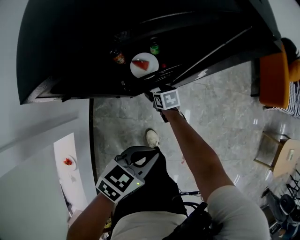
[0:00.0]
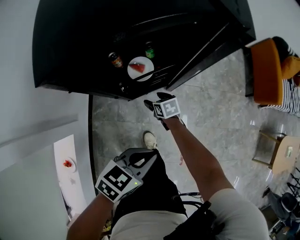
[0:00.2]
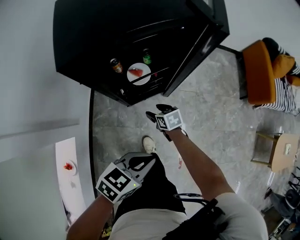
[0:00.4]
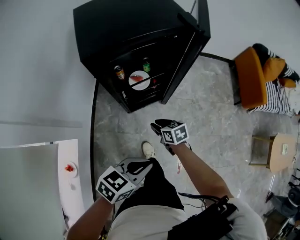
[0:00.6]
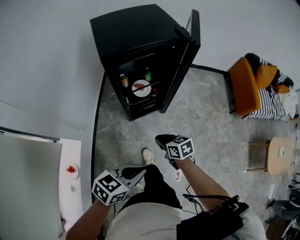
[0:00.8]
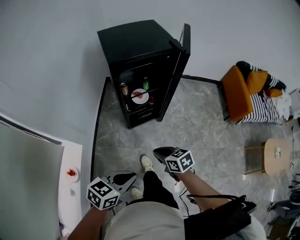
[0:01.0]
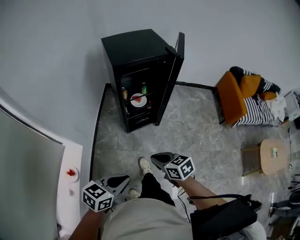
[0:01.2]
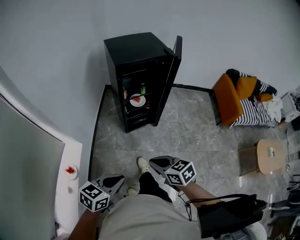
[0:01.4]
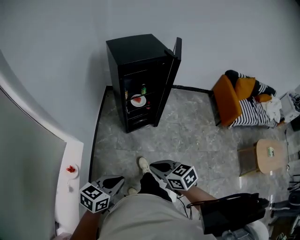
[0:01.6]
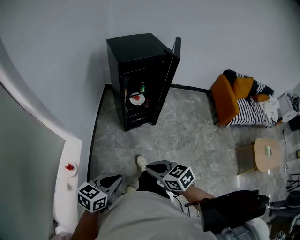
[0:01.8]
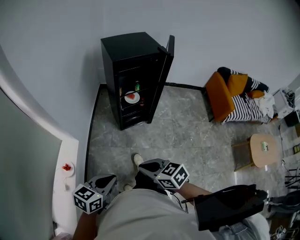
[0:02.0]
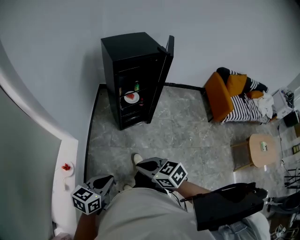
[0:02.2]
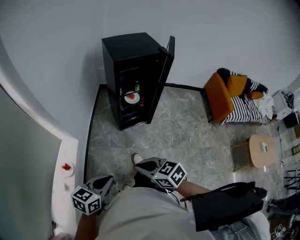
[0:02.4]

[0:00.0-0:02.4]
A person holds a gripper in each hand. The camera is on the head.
0:00.0 to 0:01.2: The left gripper shifts by some 40 cm.
0:01.2 to 0:02.4: The left gripper changes place by about 10 cm.

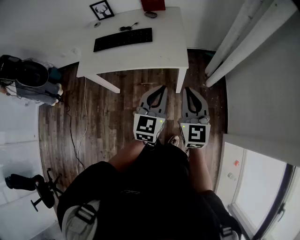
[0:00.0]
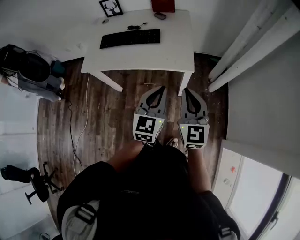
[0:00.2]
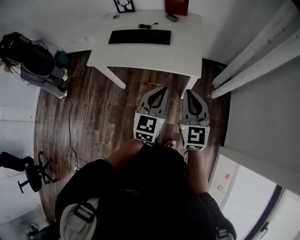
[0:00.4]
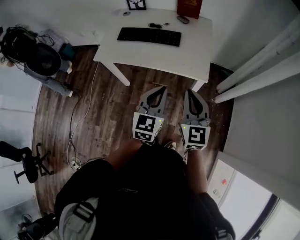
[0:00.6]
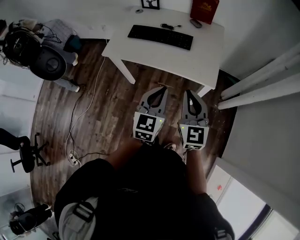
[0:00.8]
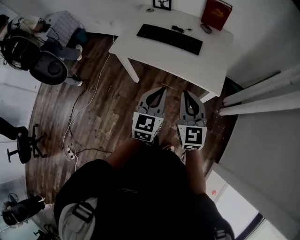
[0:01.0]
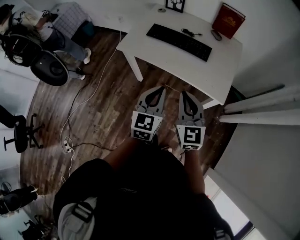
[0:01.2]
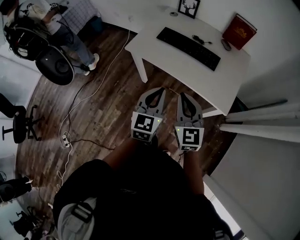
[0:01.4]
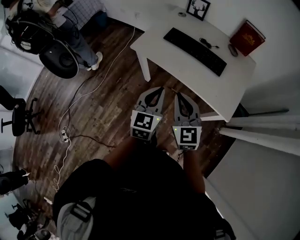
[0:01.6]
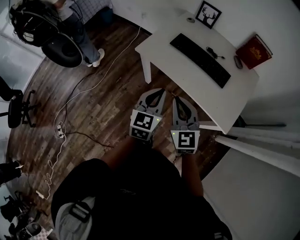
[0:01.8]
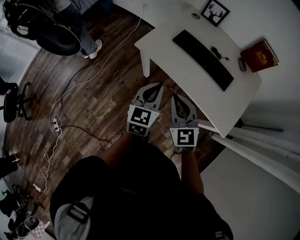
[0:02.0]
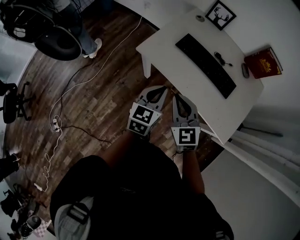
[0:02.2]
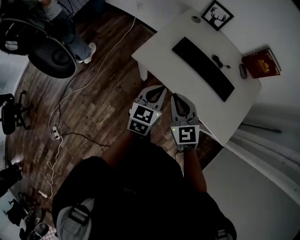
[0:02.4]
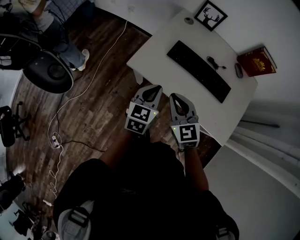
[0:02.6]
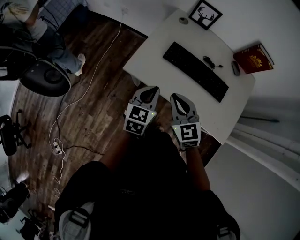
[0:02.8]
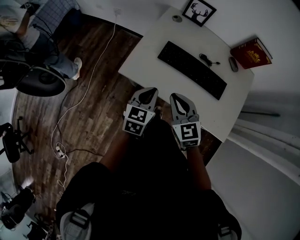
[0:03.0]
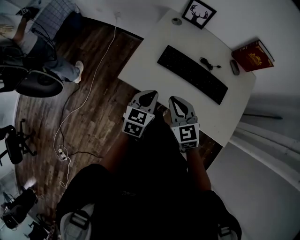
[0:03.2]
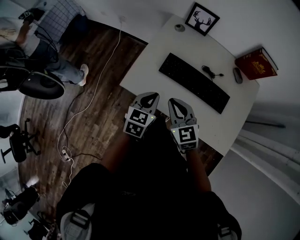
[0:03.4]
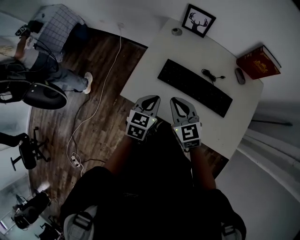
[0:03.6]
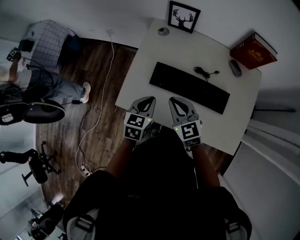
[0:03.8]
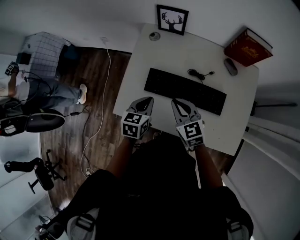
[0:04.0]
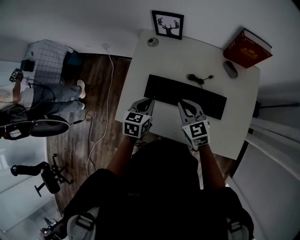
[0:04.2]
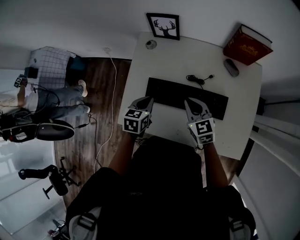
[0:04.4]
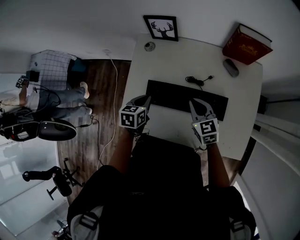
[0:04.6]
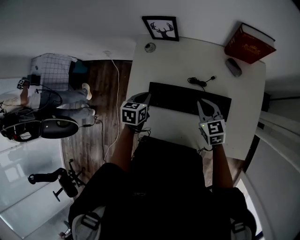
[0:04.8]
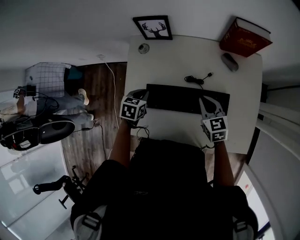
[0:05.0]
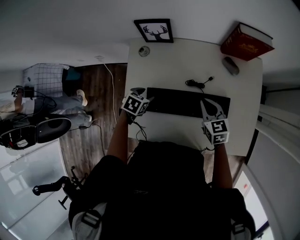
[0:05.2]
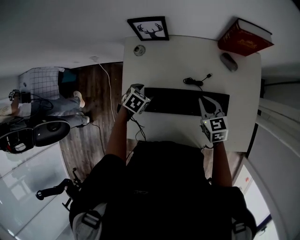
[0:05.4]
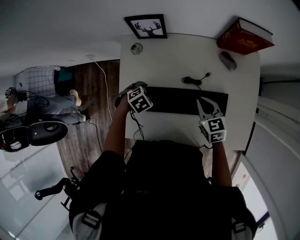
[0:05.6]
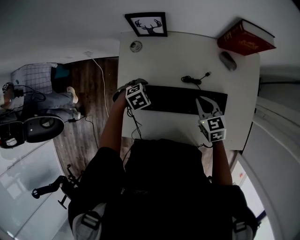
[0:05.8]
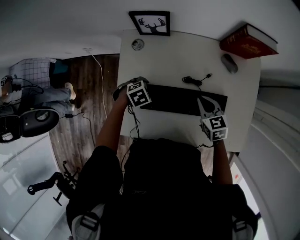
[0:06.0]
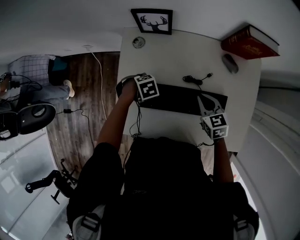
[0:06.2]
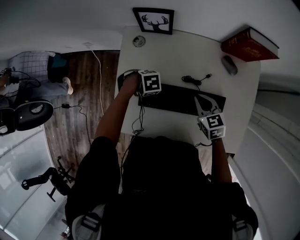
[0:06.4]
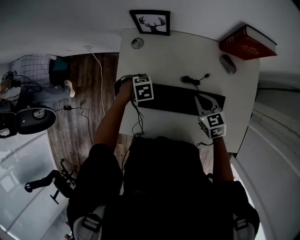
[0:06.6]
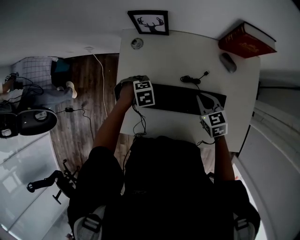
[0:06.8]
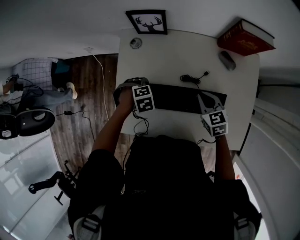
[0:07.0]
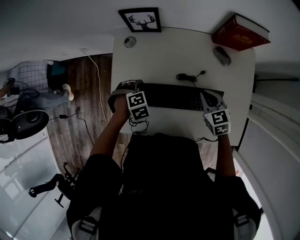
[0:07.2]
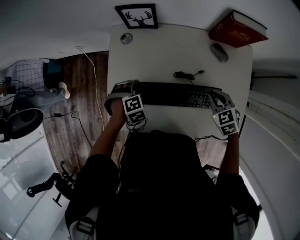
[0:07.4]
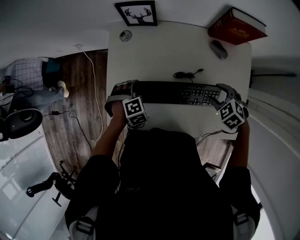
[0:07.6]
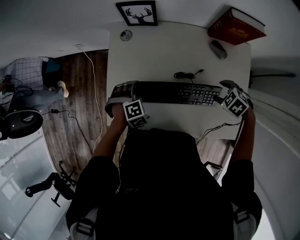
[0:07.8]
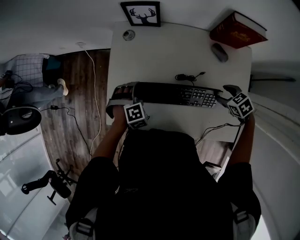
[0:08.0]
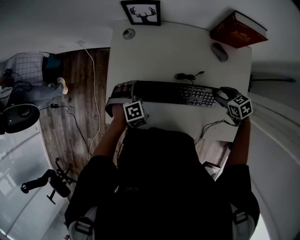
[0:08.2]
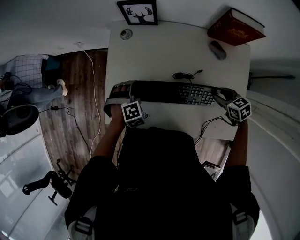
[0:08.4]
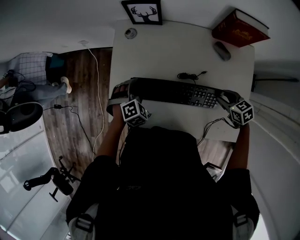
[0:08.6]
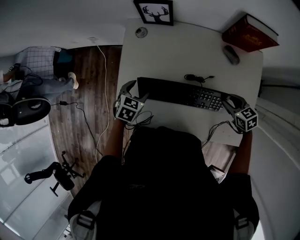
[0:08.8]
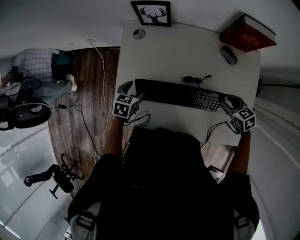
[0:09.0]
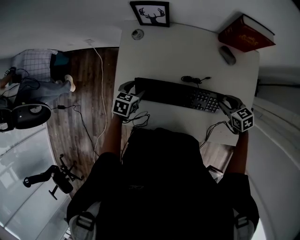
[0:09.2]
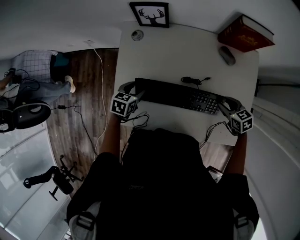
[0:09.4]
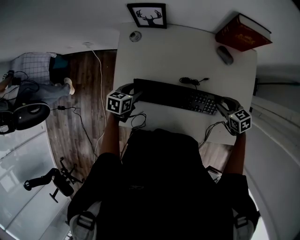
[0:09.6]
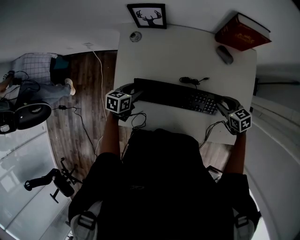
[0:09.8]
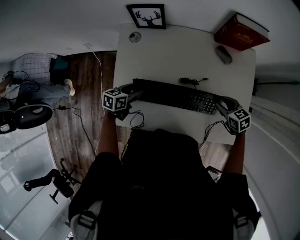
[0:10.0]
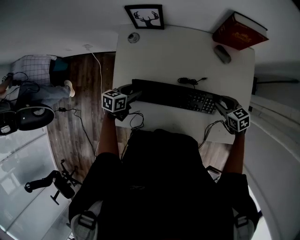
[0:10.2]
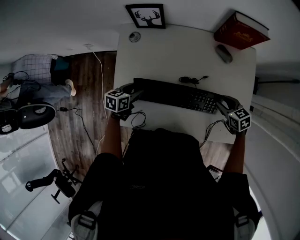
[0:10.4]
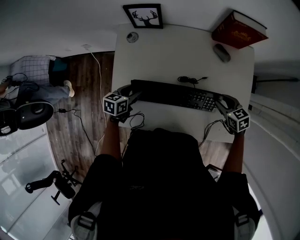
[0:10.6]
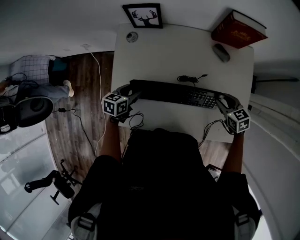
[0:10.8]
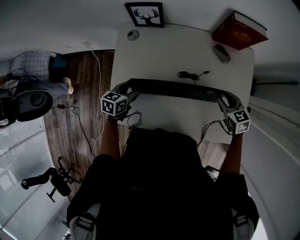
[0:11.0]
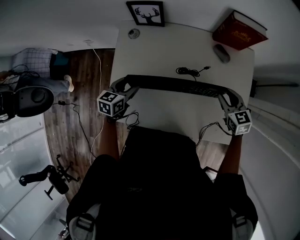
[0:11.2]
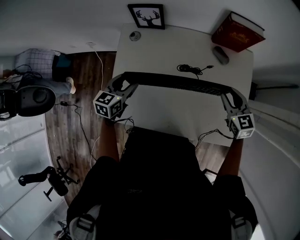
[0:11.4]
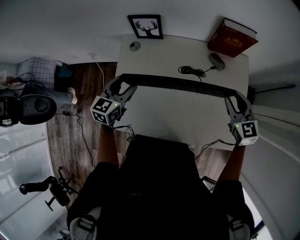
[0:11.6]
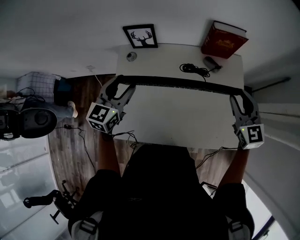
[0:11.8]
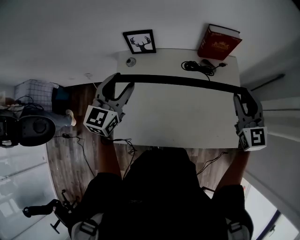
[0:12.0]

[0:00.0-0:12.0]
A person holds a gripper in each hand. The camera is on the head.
0:00.0 to 0:01.6: The left gripper changes place by about 30 cm, and changes its angle by roughly 30 degrees. The right gripper moves about 30 cm, and rotates about 40 degrees.
0:01.6 to 0:03.0: The grippers both shift forward by approximately 25 cm.
0:03.0 to 0:04.4: The right gripper shifts about 25 cm forward and to the right. The left gripper is displaced forward by some 20 cm.
0:04.4 to 0:06.0: The right gripper shifts by some 10 cm. Meanwhile the left gripper goes about 10 cm downward, changes its angle by about 70 degrees, and opens up.
0:06.0 to 0:07.6: The left gripper ends up some 5 cm from where it was, and changes its angle by approximately 30 degrees, while the right gripper ends up roughly 10 cm from where it was, changes its angle by approximately 40 degrees, and opens its fingers.
0:07.6 to 0:09.0: The right gripper ends up some 5 cm from where it was, and turns by approximately 40 degrees, while the left gripper ends up roughly 5 cm from where it was, and rolls counterclockwise, seen from behind, by approximately 60 degrees.
0:09.0 to 0:10.4: The left gripper changes its angle by about 20 degrees.
0:10.4 to 0:12.0: Both grippers move upward, approximately 30 cm. The left gripper tilts its fingers about 30 degrees upward. The right gripper tips its fingers upward by about 40 degrees.

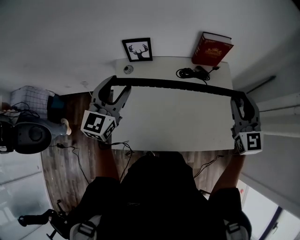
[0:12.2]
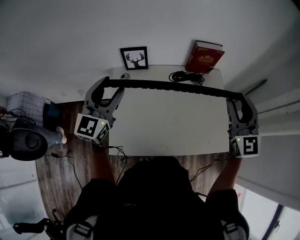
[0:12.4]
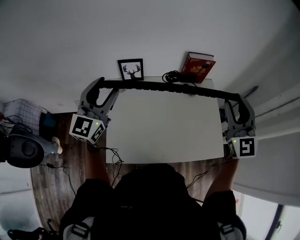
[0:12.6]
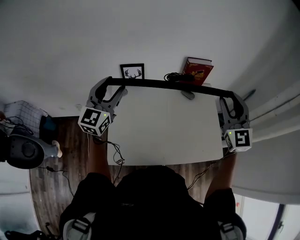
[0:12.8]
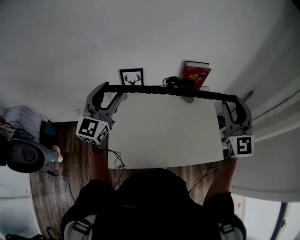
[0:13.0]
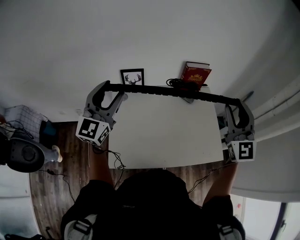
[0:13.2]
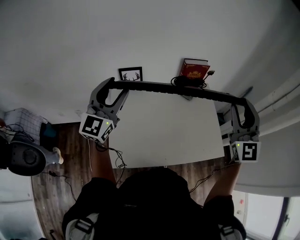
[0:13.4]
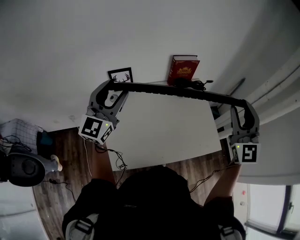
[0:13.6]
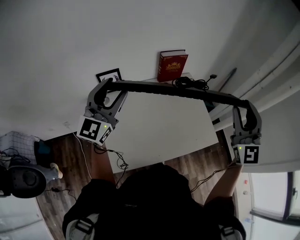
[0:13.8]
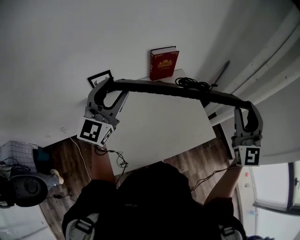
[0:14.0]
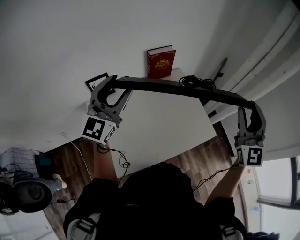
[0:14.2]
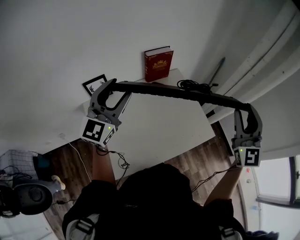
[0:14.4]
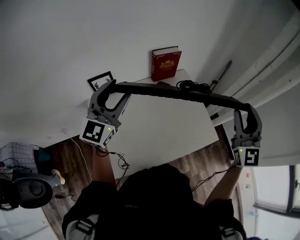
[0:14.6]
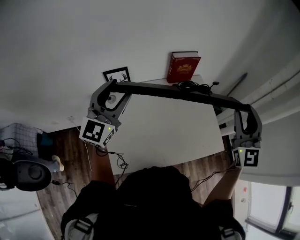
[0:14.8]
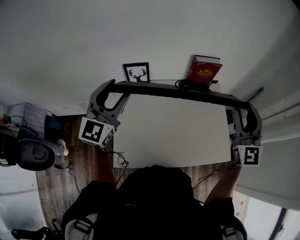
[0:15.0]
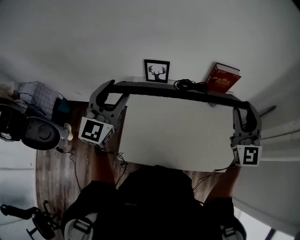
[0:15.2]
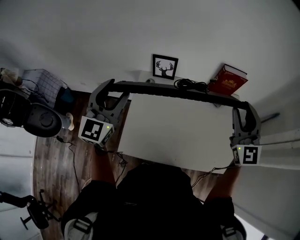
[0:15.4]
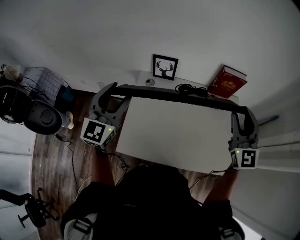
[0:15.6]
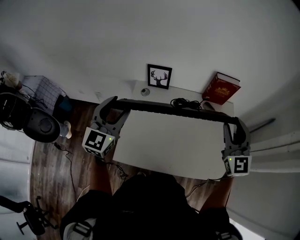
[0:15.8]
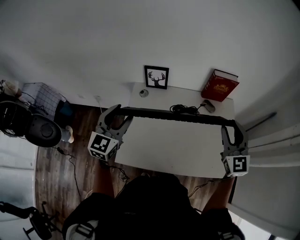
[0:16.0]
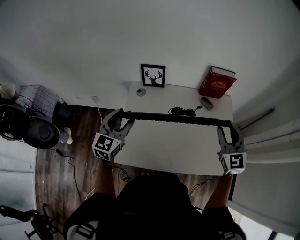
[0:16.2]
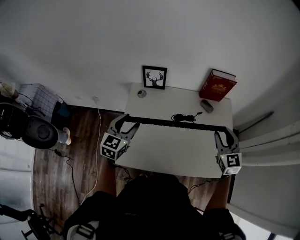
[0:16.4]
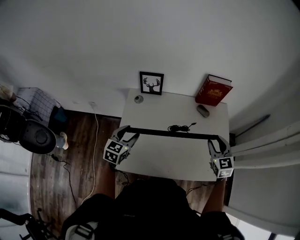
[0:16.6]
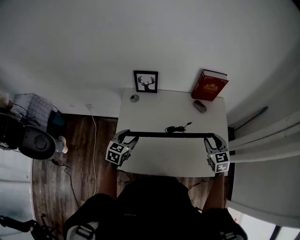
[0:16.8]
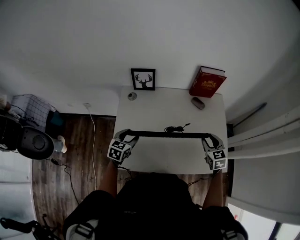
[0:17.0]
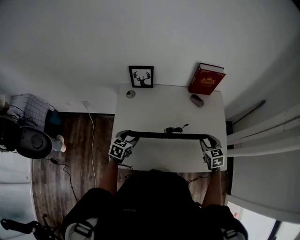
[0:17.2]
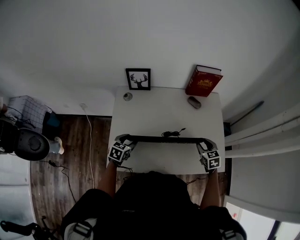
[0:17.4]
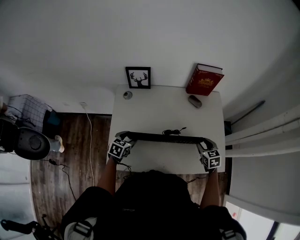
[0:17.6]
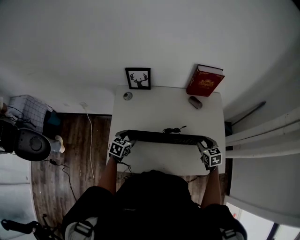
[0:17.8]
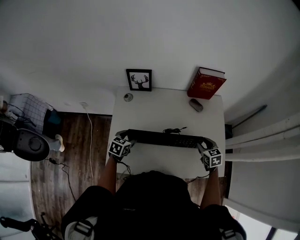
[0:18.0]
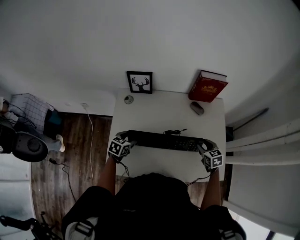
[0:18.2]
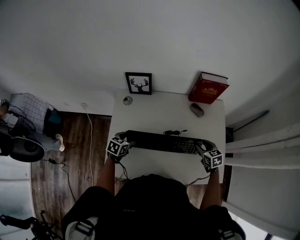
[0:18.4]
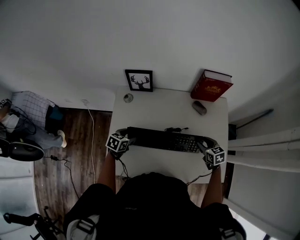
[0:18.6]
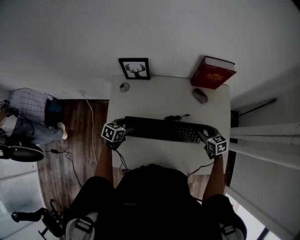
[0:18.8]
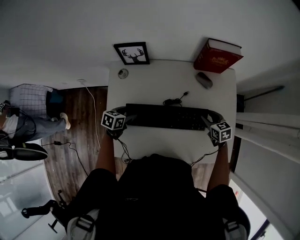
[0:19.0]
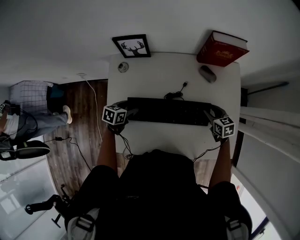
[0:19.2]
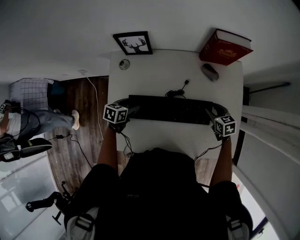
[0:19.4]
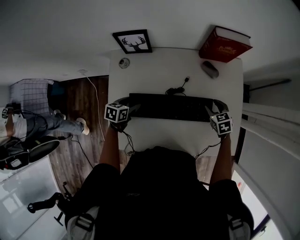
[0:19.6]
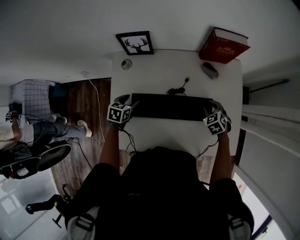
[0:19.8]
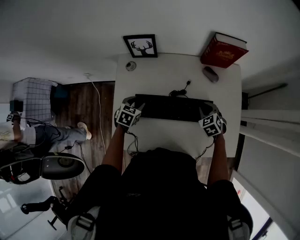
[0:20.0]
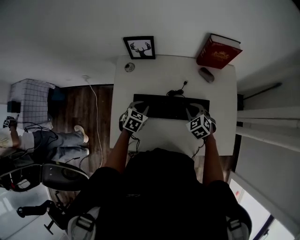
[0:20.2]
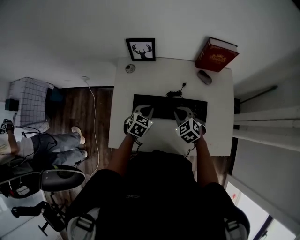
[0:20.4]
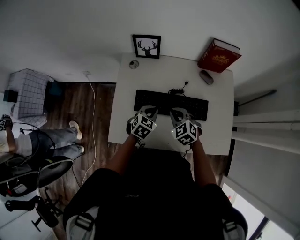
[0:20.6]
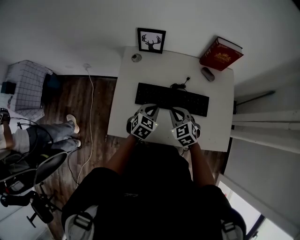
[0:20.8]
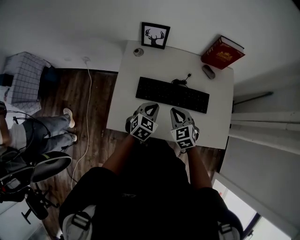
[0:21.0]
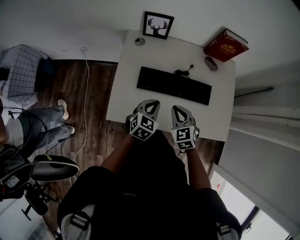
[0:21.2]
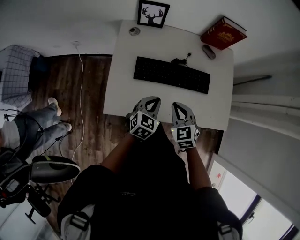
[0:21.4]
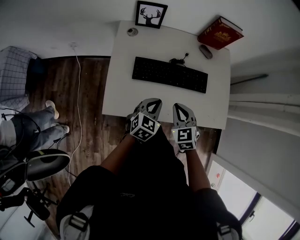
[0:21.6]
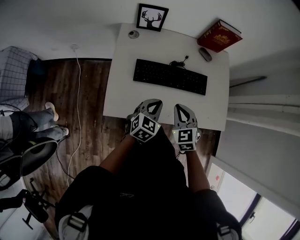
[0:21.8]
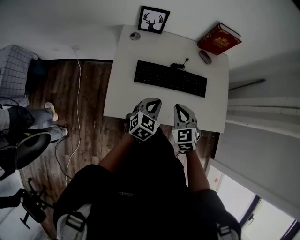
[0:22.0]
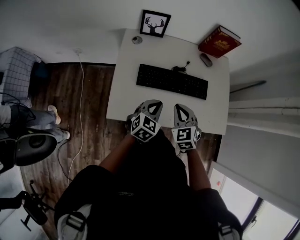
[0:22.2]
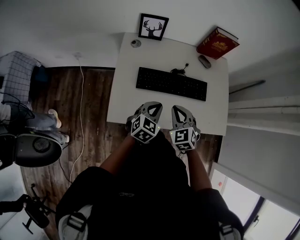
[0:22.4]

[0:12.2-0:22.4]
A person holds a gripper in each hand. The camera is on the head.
0:12.2 to 0:13.6: The right gripper heads upward and backward, covering approximately 20 cm, and rotates roughly 30 degrees. Meanwhile the left gripper shifts roughly 10 cm upward, and rotates approximately 20 degrees.
0:13.6 to 0:15.2: The right gripper moves roughly 15 cm. The left gripper moves approximately 10 cm.
0:15.2 to 0:16.6: The grippers both shift downward by approximately 25 cm. The right gripper tilts its fingers about 30 degrees downward. Meanwhile the left gripper turns by about 30 degrees.
0:16.6 to 0:18.0: The grippers both shift downward by about 15 cm. The right gripper changes its angle by roughly 20 degrees; the left gripper rotates some 20 degrees.
0:18.0 to 0:19.4: Both grippers move forward and downward, approximately 10 cm.
0:19.4 to 0:21.0: The right gripper travels to the left, backward and upward by about 30 cm, changes its angle by some 30 degrees, and closes up, while the left gripper travels backward, upward and to the right by roughly 20 cm, rotates some 30 degrees, and closes its fingers.
0:21.0 to 0:22.4: The grippers both shift backward by some 5 cm.
